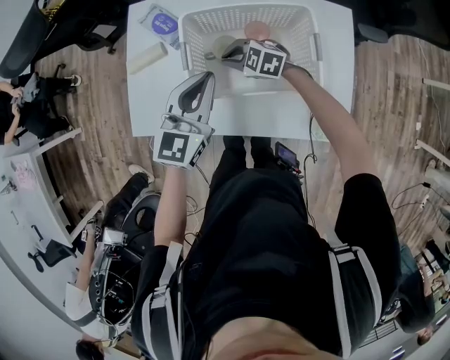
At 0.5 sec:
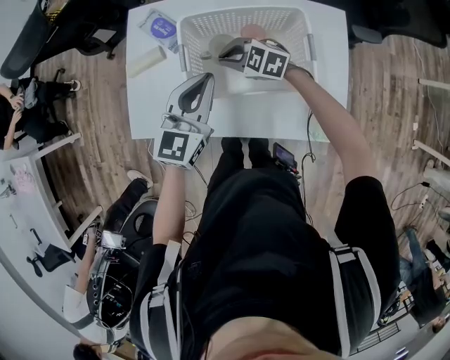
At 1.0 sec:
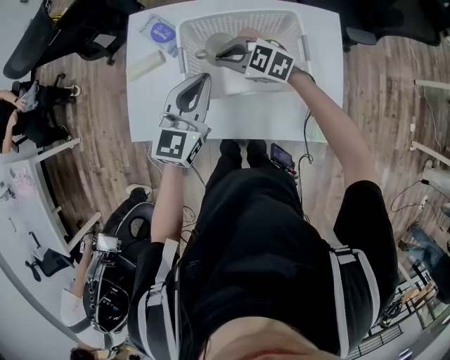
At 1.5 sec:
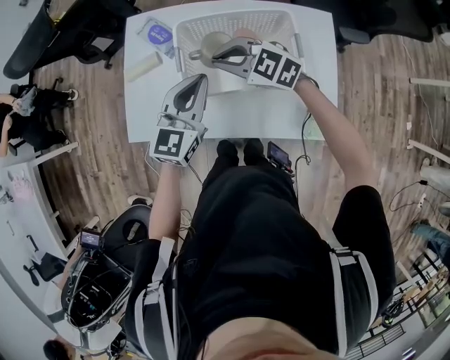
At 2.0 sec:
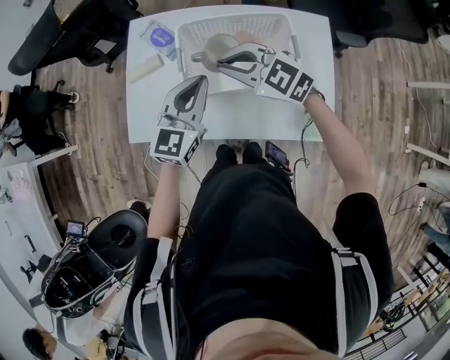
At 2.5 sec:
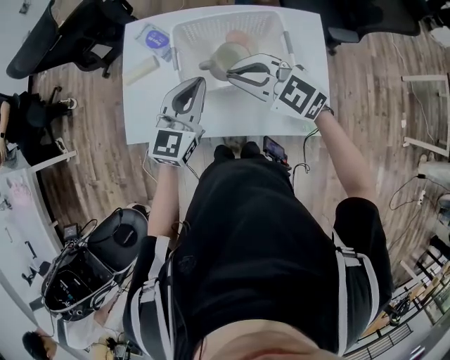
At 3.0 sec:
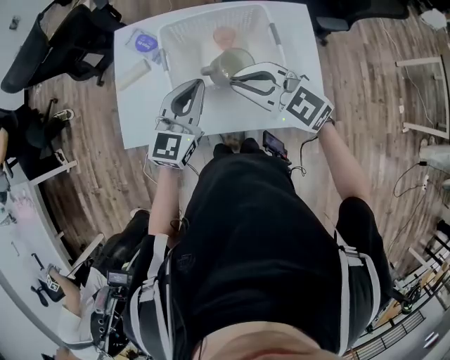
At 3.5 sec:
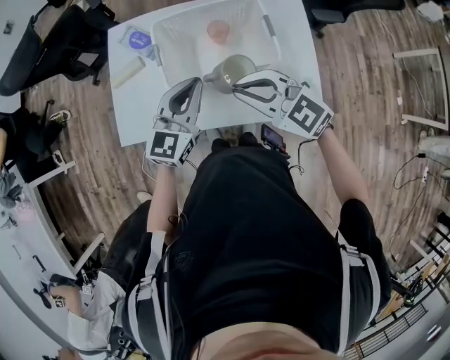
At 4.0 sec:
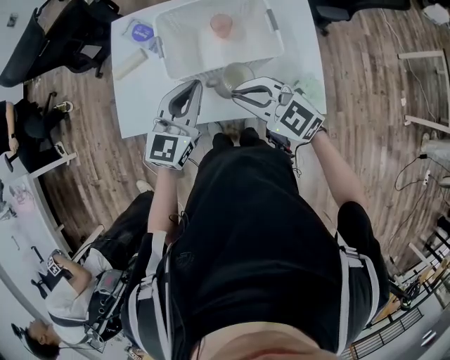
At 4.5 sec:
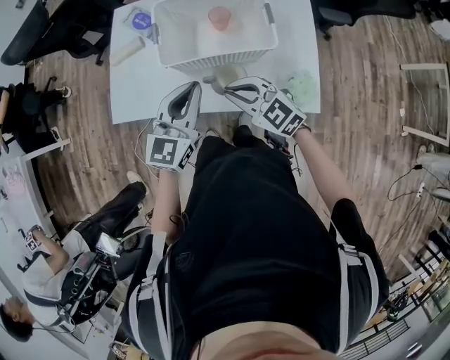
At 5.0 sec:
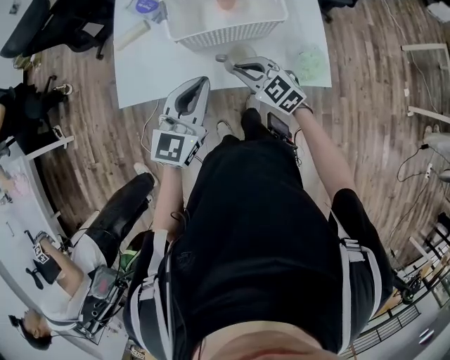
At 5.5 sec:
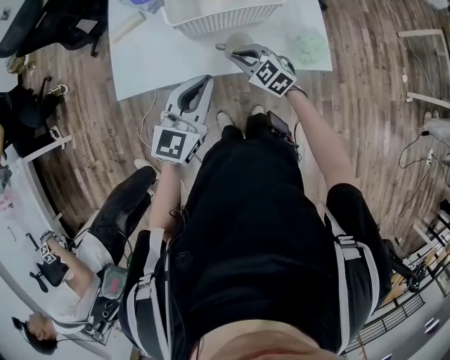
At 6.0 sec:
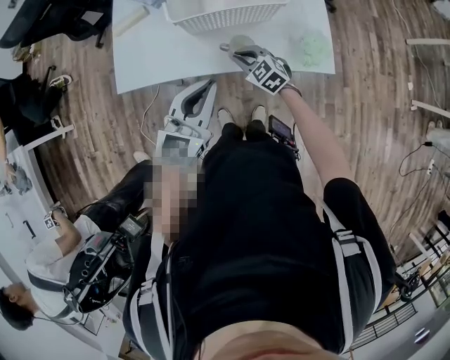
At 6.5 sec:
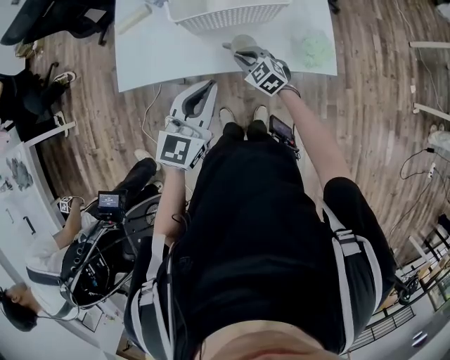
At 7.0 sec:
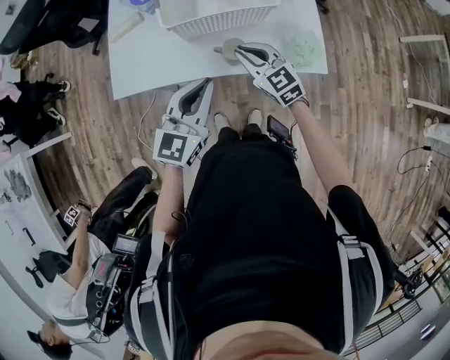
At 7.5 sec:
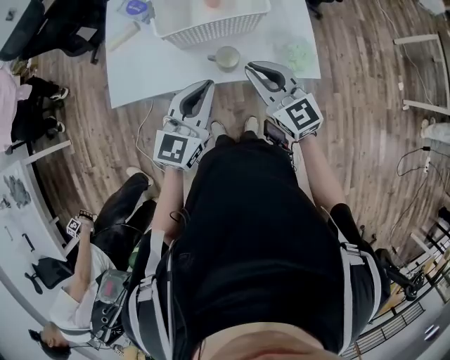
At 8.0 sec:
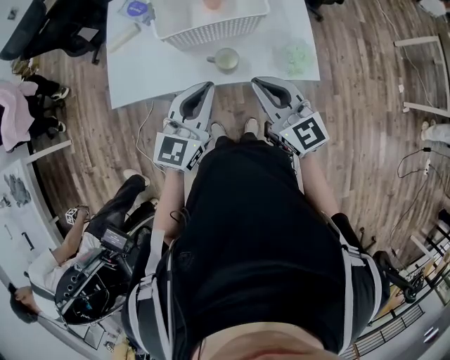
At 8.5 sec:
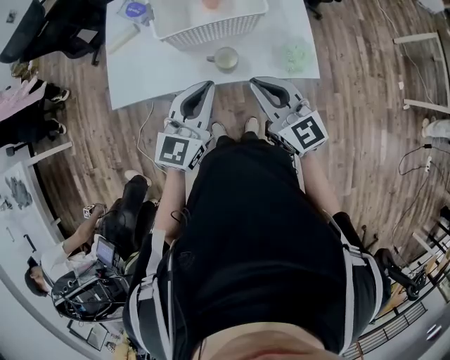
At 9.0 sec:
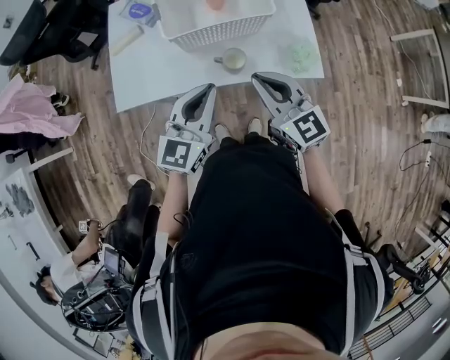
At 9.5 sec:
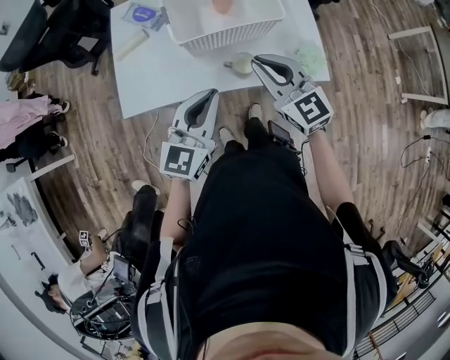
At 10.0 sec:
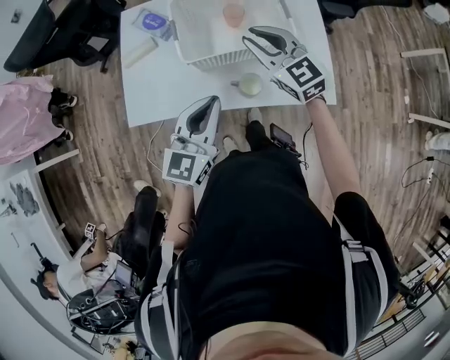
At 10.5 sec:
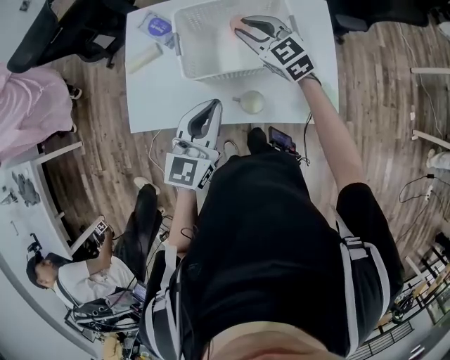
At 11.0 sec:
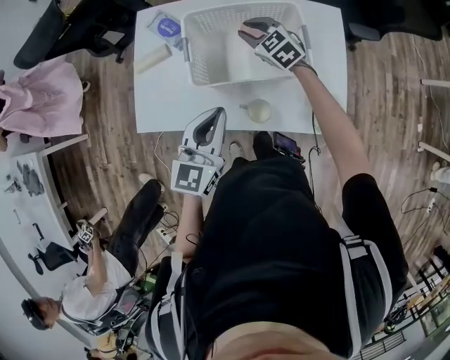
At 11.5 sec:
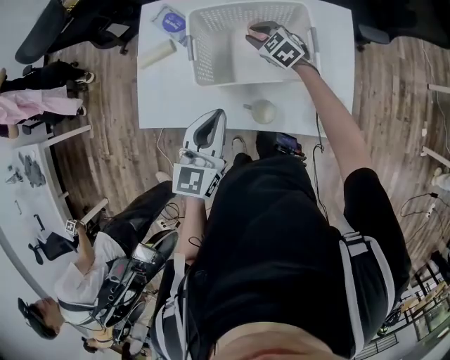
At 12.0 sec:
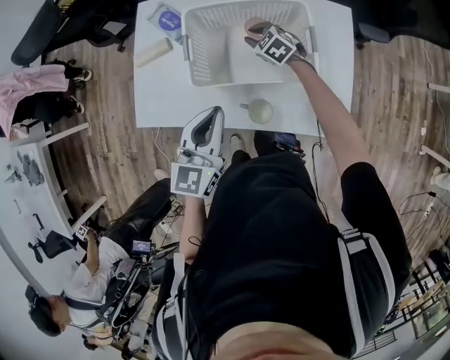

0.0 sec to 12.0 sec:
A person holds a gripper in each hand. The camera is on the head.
0.0 sec to 2.0 sec: The right gripper goes some 20 cm upward, and rotates roughly 20 degrees.
2.0 sec to 4.0 sec: The left gripper travels backward by approximately 5 cm. The right gripper travels backward by about 15 cm.
4.0 sec to 6.0 sec: The left gripper shifts about 15 cm backward. The right gripper heads downward, covering roughly 20 cm, and rotates some 20 degrees.
6.0 sec to 8.0 sec: The right gripper shifts some 25 cm upward and backward, and tilts its fingers roughly 30 degrees upward.
8.0 sec to 10.0 sec: The right gripper travels forward by approximately 20 cm. Meanwhile the left gripper is displaced forward and to the left by some 10 cm.
10.0 sec to 12.0 sec: The right gripper goes about 30 cm downward and forward, and tips its fingers downward by roughly 30 degrees; the left gripper is displaced forward by approximately 10 cm.

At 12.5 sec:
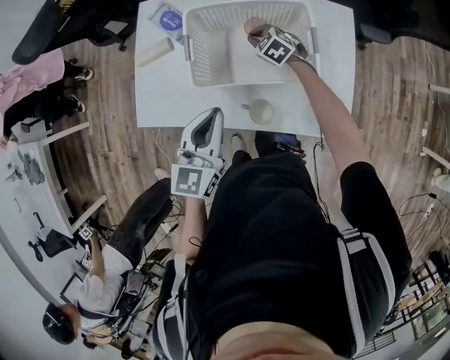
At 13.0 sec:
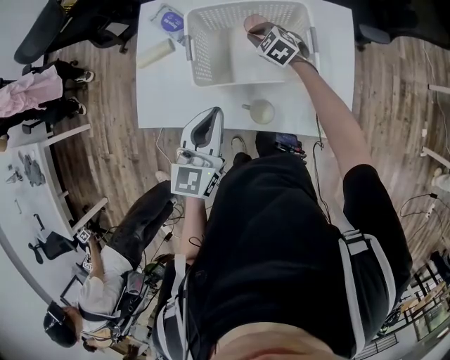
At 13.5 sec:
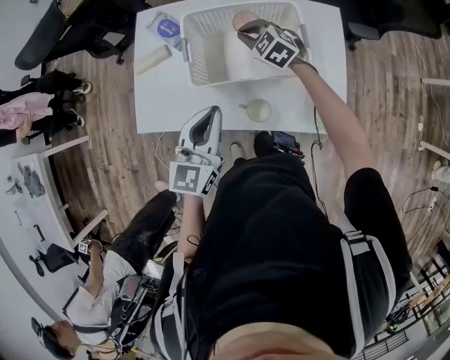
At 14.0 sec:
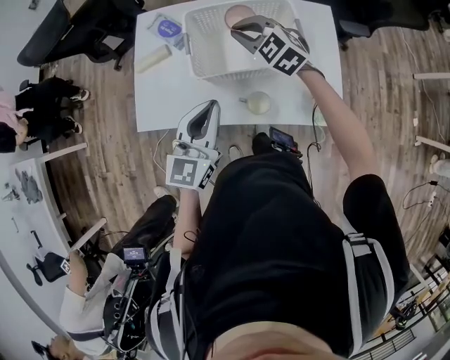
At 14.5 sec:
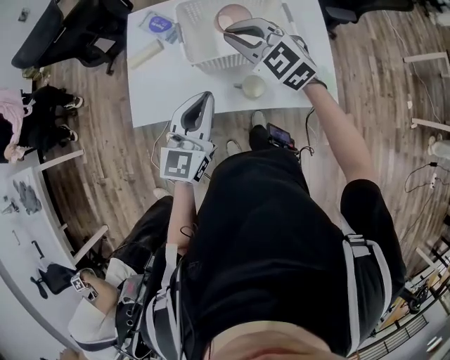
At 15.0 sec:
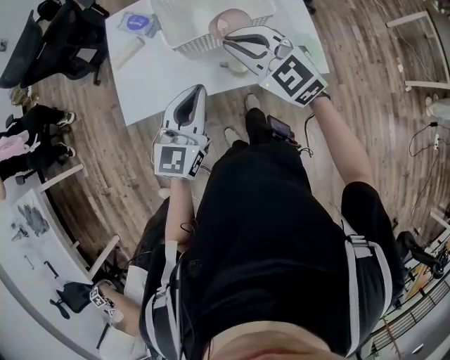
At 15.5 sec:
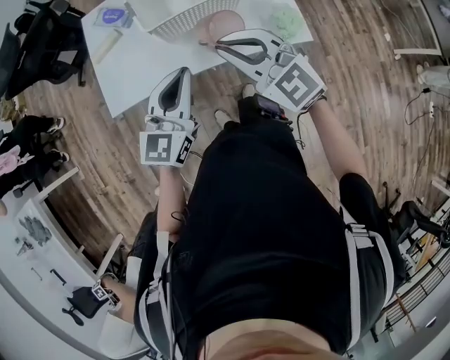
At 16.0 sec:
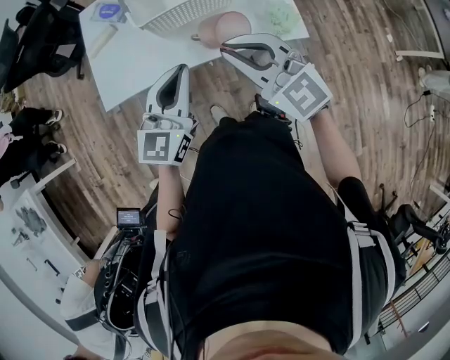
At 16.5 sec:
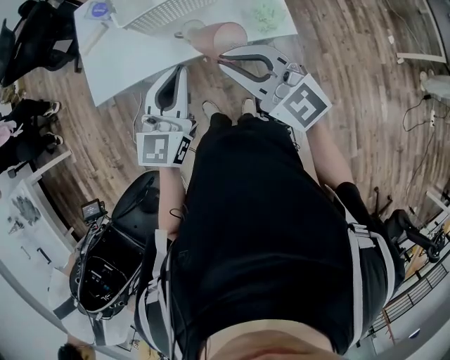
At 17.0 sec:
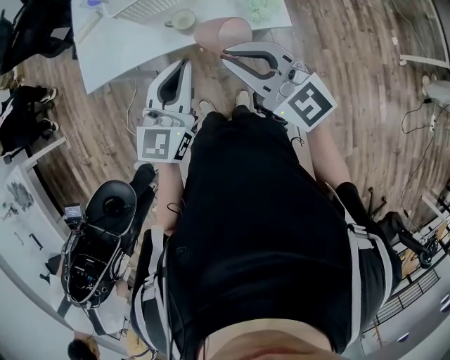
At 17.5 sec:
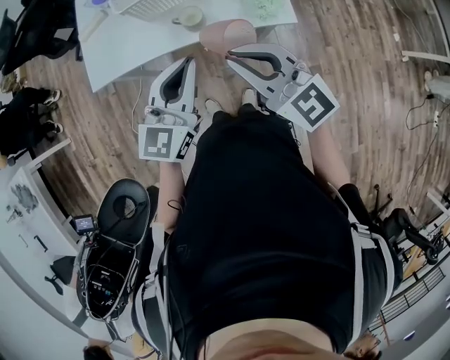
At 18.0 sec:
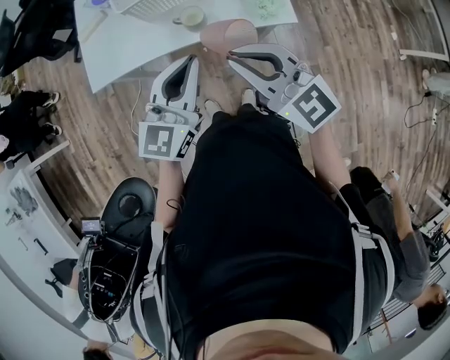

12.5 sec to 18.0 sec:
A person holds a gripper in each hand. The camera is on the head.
12.5 sec to 14.5 sec: The right gripper travels upward and backward by about 30 cm, and swivels some 30 degrees; the left gripper travels backward by some 5 cm.
14.5 sec to 16.0 sec: The right gripper moves backward, some 25 cm. The left gripper travels backward by roughly 10 cm.
16.0 sec to 18.0 sec: The right gripper moves backward and to the right, roughly 10 cm, while the left gripper is displaced to the right and backward by about 10 cm.

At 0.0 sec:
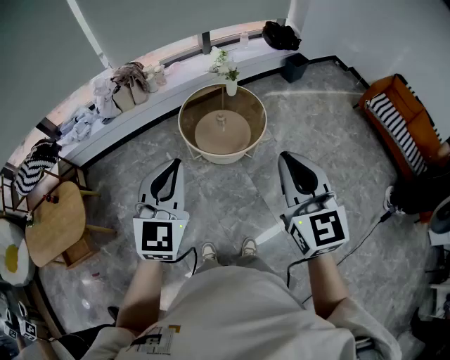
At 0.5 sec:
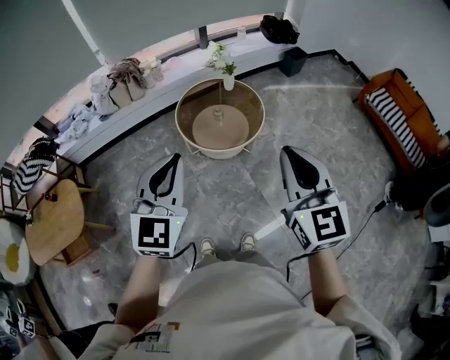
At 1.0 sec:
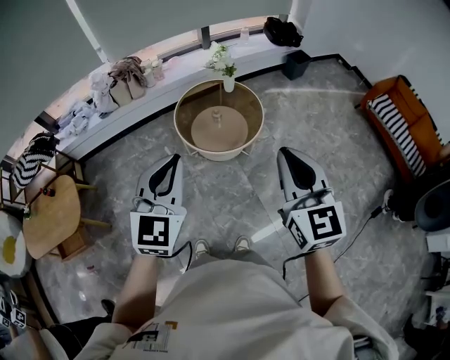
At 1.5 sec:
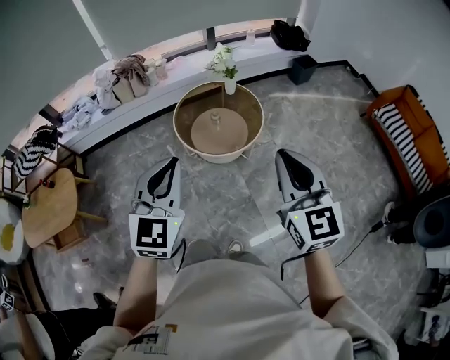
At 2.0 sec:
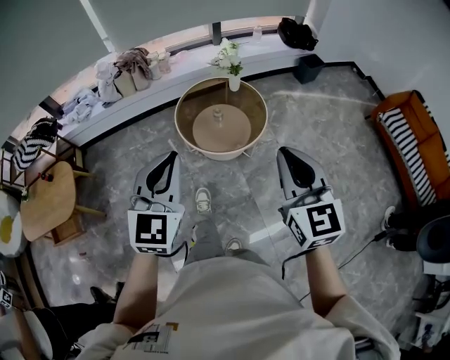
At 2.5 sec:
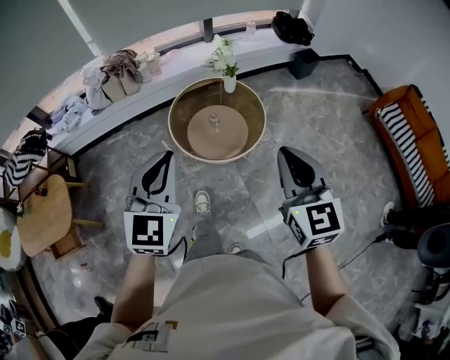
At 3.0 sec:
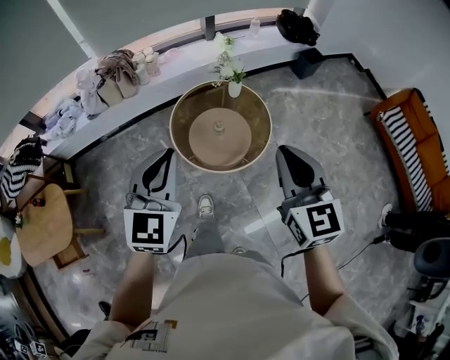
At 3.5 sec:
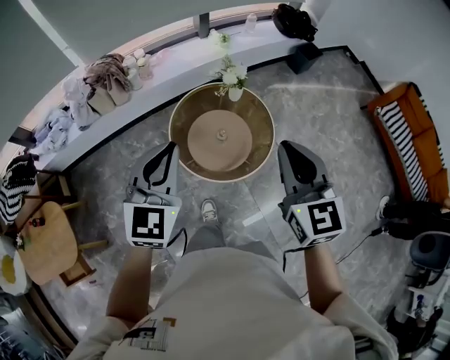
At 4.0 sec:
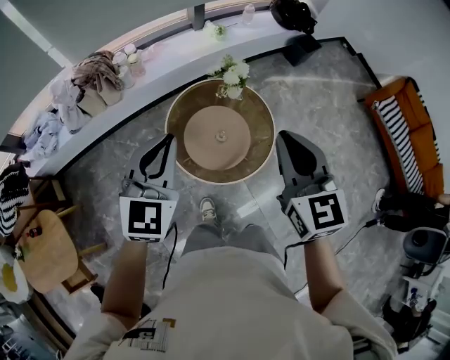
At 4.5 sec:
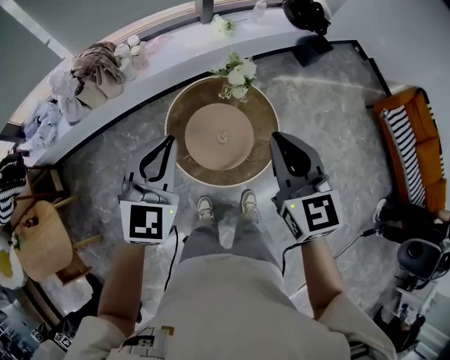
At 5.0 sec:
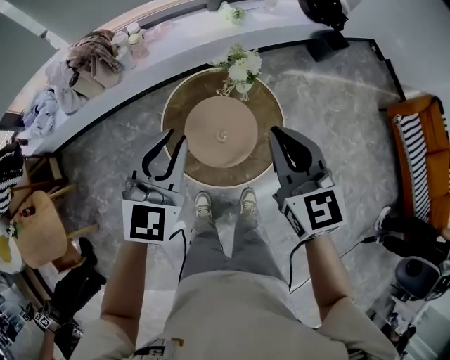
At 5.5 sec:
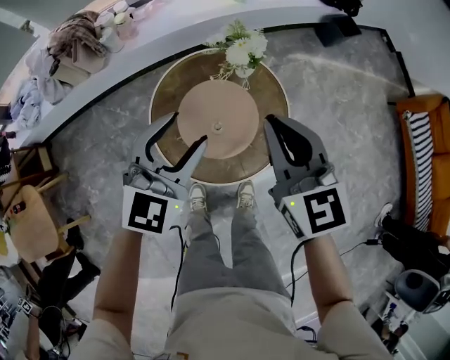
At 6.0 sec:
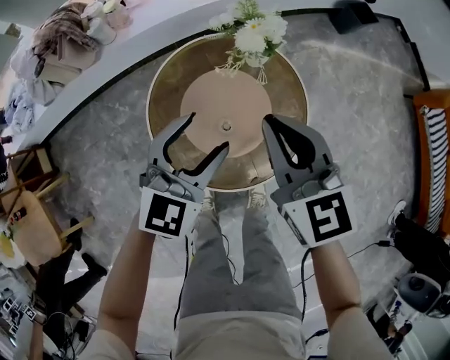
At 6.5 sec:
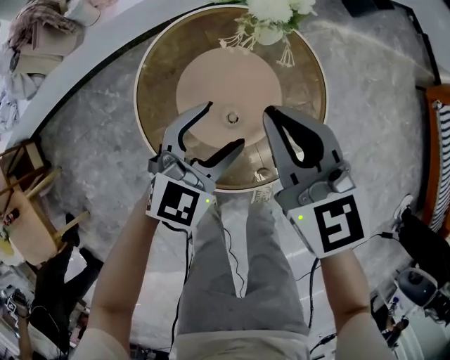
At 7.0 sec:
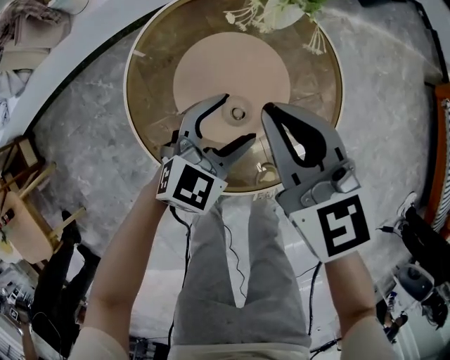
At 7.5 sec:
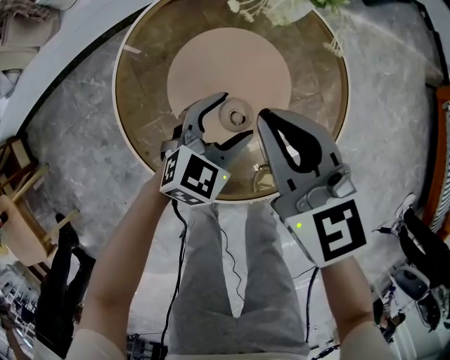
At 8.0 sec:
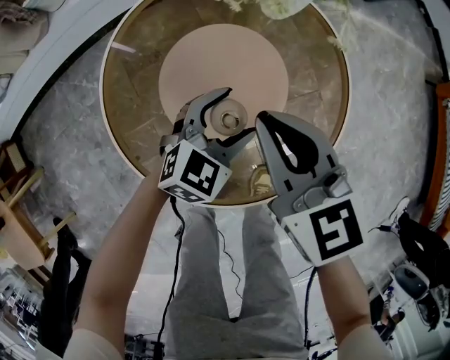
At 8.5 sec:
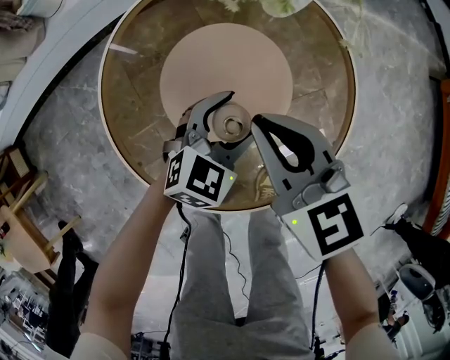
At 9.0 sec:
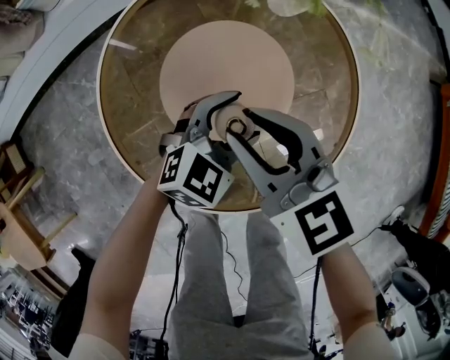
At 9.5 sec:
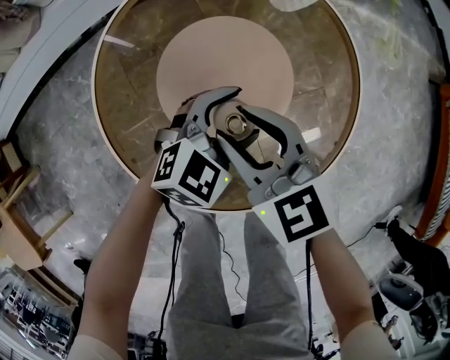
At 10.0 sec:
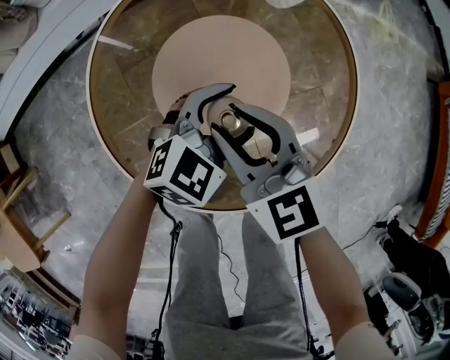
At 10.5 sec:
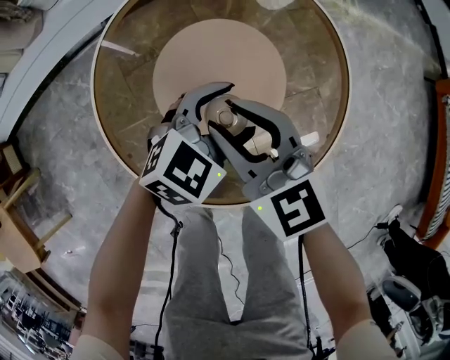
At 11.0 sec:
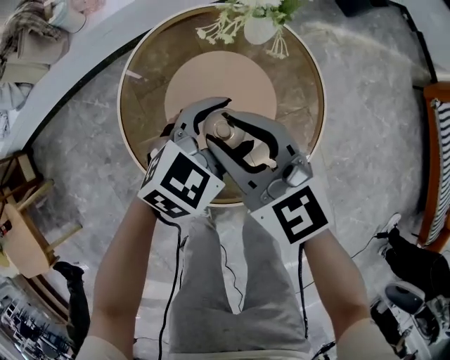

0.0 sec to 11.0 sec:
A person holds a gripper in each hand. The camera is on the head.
0.0 sec to 2.0 sec: The right gripper shifts some 15 cm to the right, forward and downward, while the left gripper moves to the right, approximately 10 cm.
2.0 sec to 3.5 sec: The two grippers go roughly 35 cm forward.
3.5 sec to 5.5 sec: The left gripper shifts some 30 cm downward, forward and to the right, and opens up. Meanwhile the right gripper shifts about 30 cm forward and downward.
5.5 sec to 7.5 sec: Both grippers travel together downward, about 35 cm. The left gripper swivels about 20 degrees.
7.5 sec to 9.0 sec: The right gripper is displaced downward by about 5 cm, and opens.
9.0 sec to 11.0 sec: Both grippers move upward, about 15 cm.
